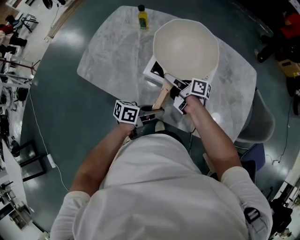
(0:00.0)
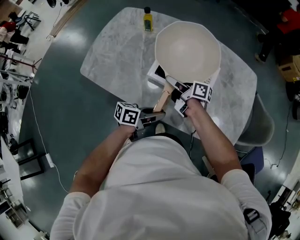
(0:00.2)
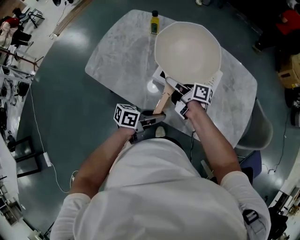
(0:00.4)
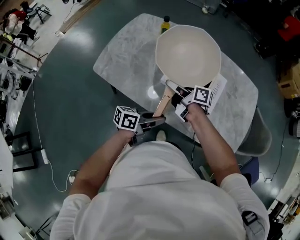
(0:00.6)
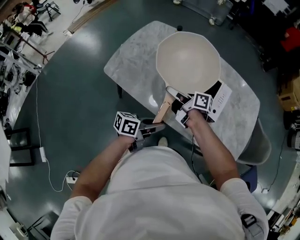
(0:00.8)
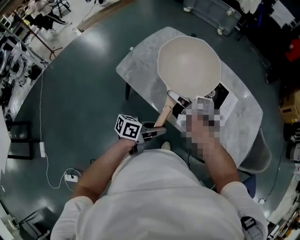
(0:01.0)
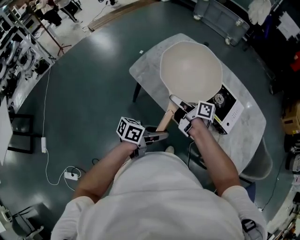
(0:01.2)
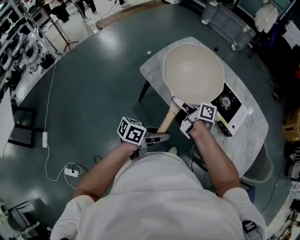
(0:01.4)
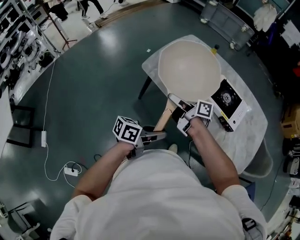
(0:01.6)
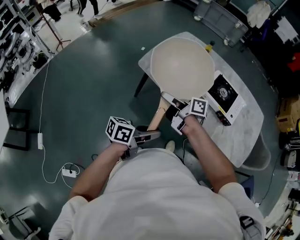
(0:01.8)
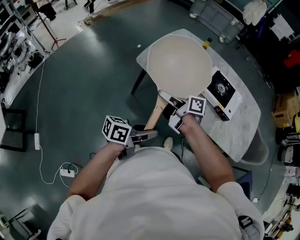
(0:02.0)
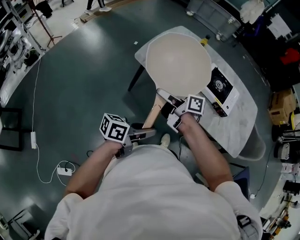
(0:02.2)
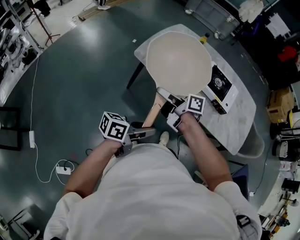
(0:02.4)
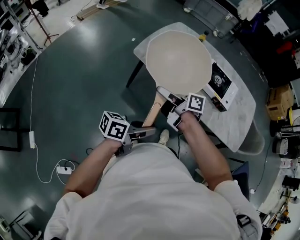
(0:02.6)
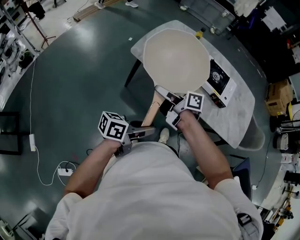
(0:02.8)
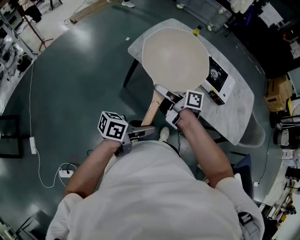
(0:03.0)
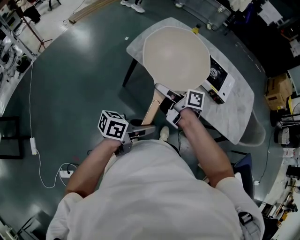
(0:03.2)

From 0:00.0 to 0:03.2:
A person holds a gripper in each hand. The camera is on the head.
From 0:00.0 to 0:01.6: The left gripper shifts by about 35 cm. Meanwhile the right gripper ends up about 40 cm from where it was.
From 0:01.6 to 0:03.2: The right gripper changes place by roughly 5 cm.

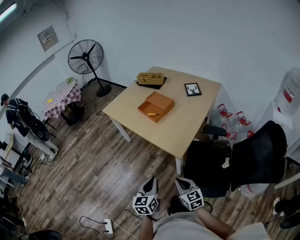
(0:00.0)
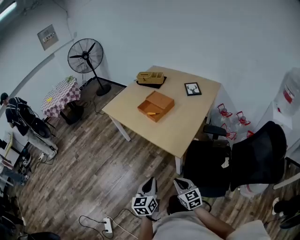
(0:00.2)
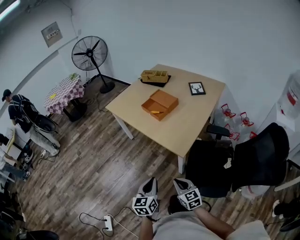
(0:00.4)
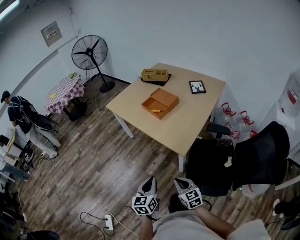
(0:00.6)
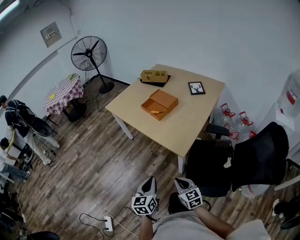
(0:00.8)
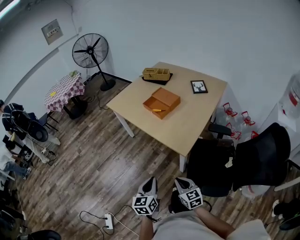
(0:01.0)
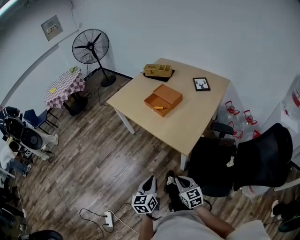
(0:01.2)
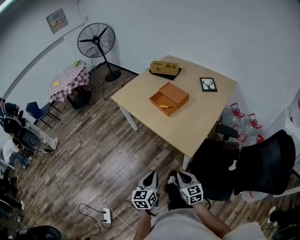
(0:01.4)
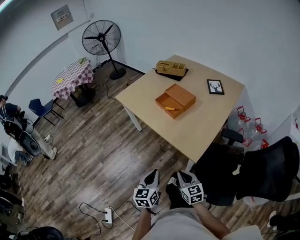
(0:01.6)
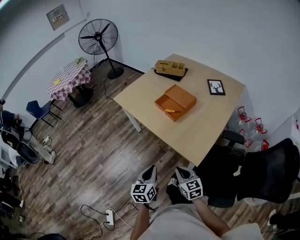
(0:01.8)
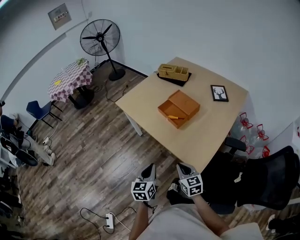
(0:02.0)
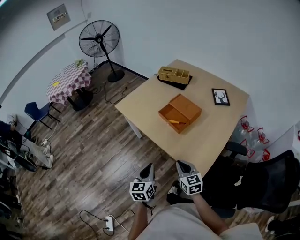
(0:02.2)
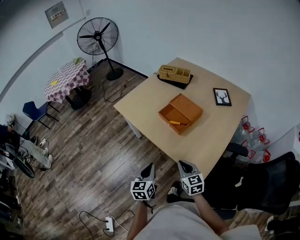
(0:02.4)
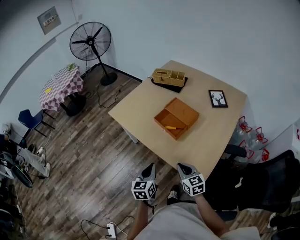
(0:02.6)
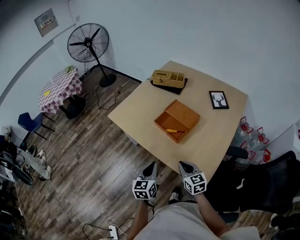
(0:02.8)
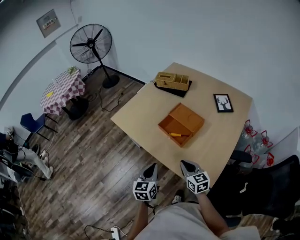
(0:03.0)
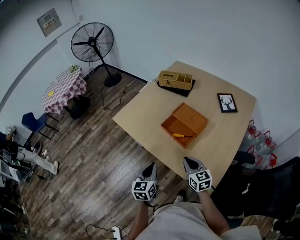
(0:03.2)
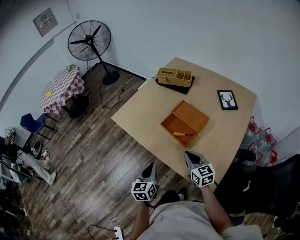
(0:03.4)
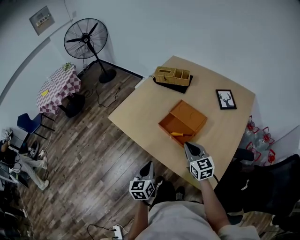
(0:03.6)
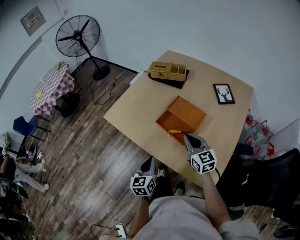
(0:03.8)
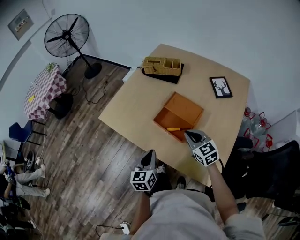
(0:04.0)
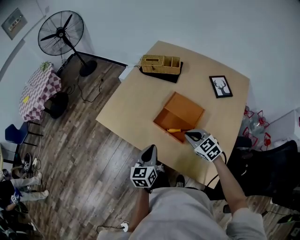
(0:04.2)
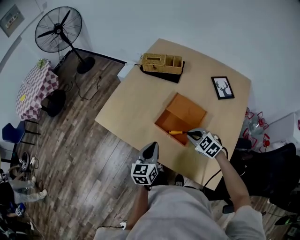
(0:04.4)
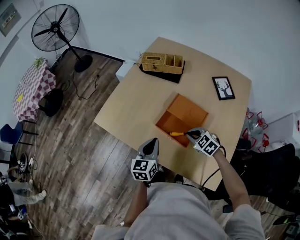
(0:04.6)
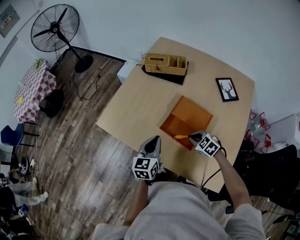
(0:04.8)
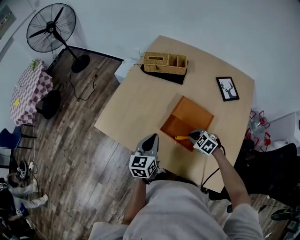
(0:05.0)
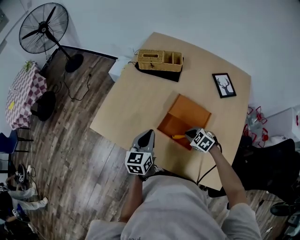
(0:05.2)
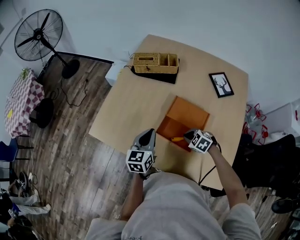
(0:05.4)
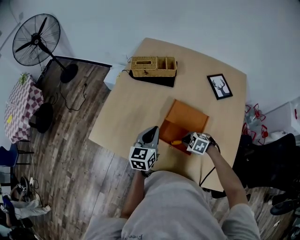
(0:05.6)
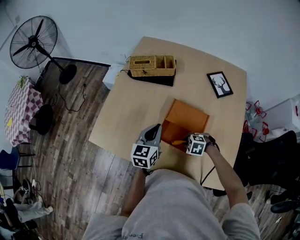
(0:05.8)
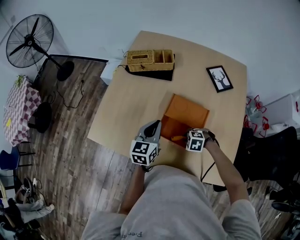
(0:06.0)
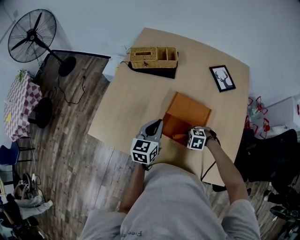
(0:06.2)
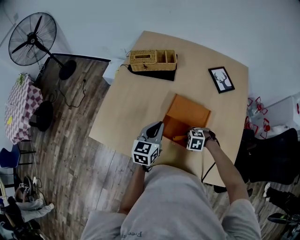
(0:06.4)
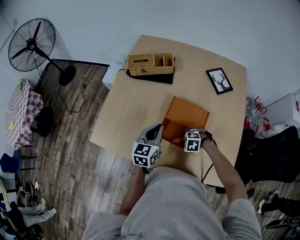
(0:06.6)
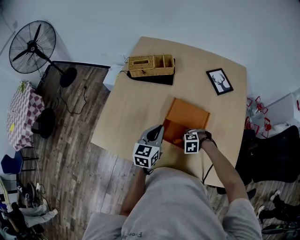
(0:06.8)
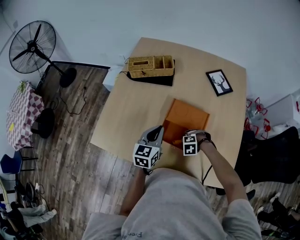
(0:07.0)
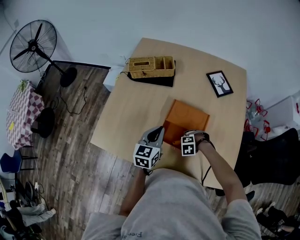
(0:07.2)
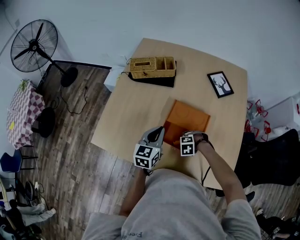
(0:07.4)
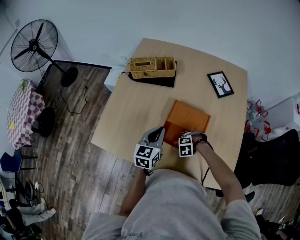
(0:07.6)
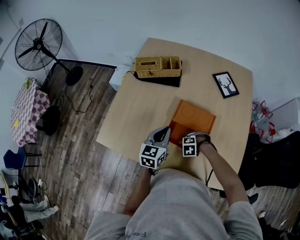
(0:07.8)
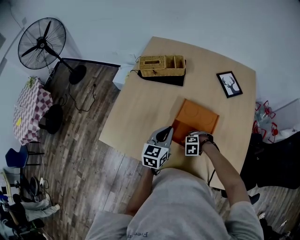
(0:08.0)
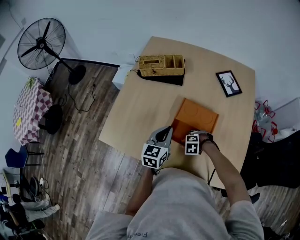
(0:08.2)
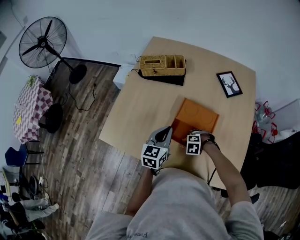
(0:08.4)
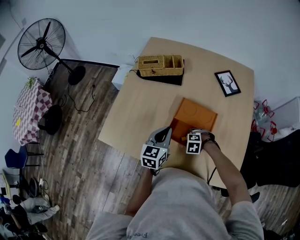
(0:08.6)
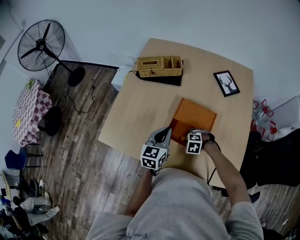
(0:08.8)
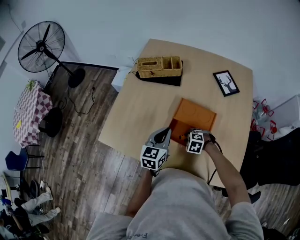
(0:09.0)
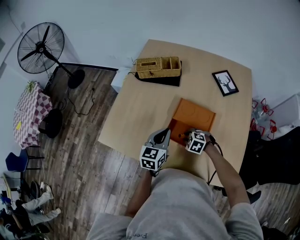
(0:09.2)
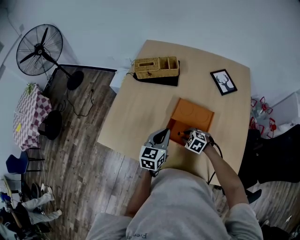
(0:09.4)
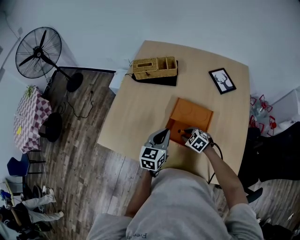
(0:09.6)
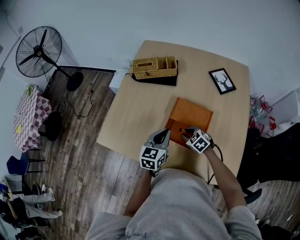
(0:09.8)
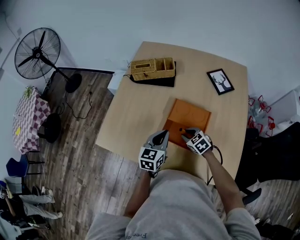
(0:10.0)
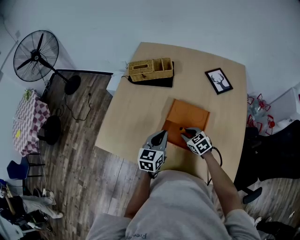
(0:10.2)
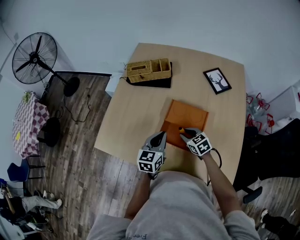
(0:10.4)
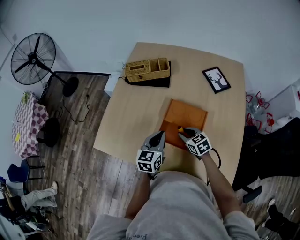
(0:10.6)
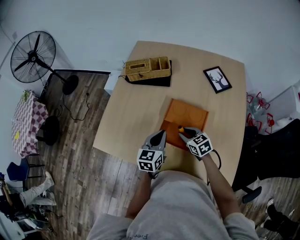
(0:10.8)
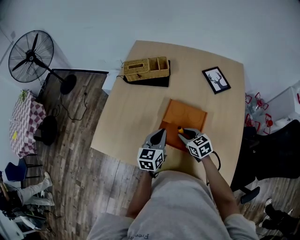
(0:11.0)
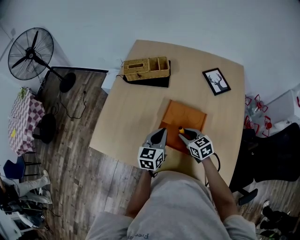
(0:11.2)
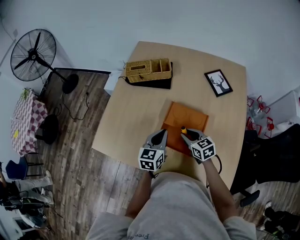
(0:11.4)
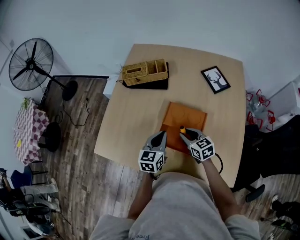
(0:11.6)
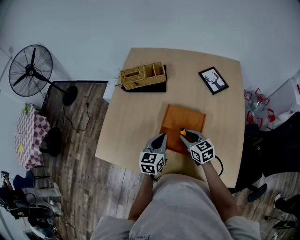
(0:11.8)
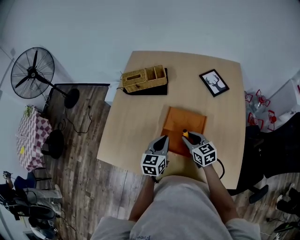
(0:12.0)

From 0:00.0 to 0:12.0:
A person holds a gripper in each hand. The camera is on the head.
From 0:00.0 to 0:01.6: The grippers both shift forward and to the left by approximately 10 cm.
From 0:01.6 to 0:03.0: Both grippers move forward, some 30 cm.
From 0:03.0 to 0:04.4: The grippers both shift forward by about 20 cm. The right gripper turns by roughly 40 degrees.
From 0:04.4 to 0:06.0: The left gripper changes place by some 20 cm, while the right gripper travels downward by some 15 cm, and turns by roughly 30 degrees.
From 0:06.0 to 0:07.6: The grippers make only small movements.
From 0:07.6 to 0:09.0: The right gripper swivels roughly 20 degrees.
From 0:09.0 to 0:10.4: The right gripper is displaced upward by approximately 5 cm, and angles its fingers upward, by approximately 30 degrees.
From 0:10.4 to 0:12.0: The right gripper is displaced upward by some 5 cm, and swivels some 20 degrees.

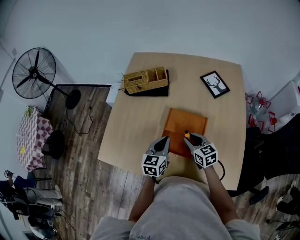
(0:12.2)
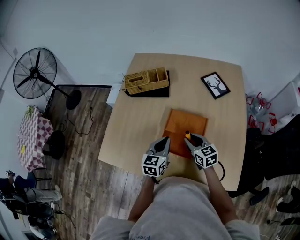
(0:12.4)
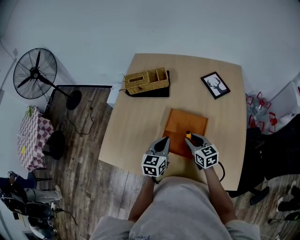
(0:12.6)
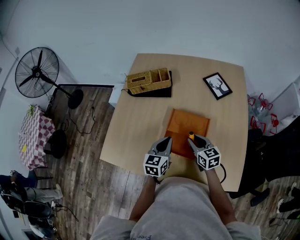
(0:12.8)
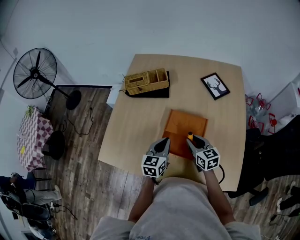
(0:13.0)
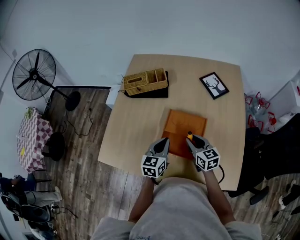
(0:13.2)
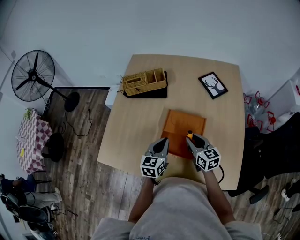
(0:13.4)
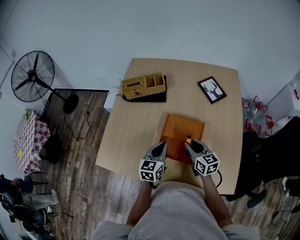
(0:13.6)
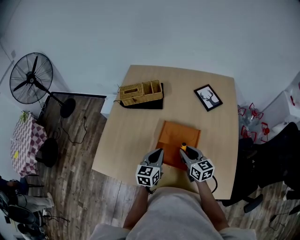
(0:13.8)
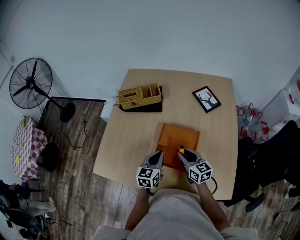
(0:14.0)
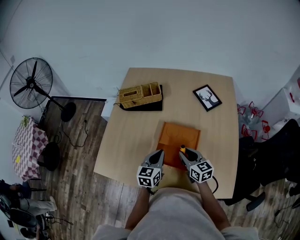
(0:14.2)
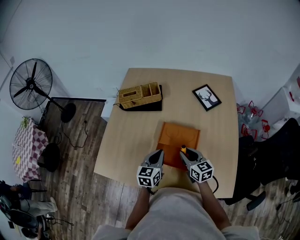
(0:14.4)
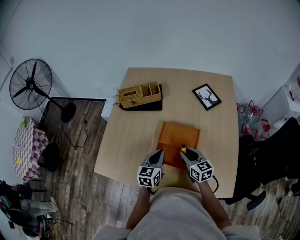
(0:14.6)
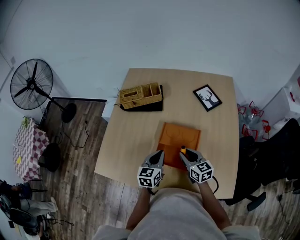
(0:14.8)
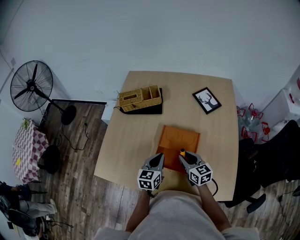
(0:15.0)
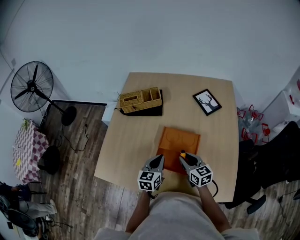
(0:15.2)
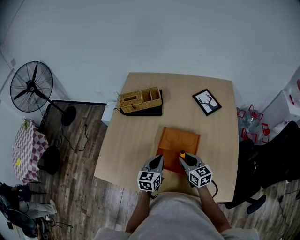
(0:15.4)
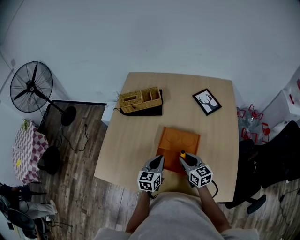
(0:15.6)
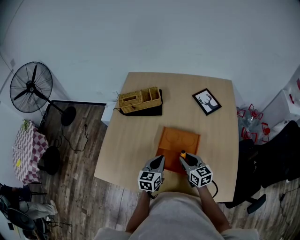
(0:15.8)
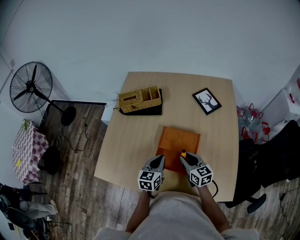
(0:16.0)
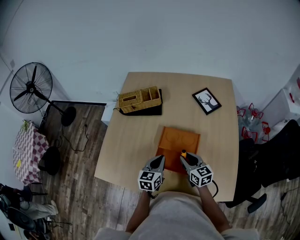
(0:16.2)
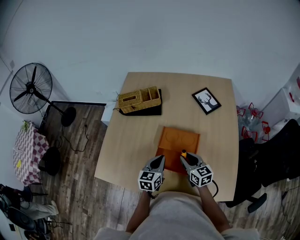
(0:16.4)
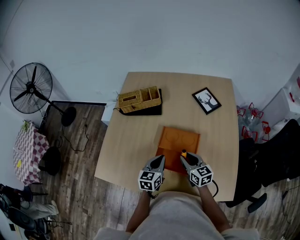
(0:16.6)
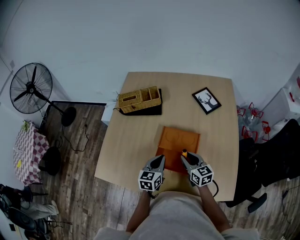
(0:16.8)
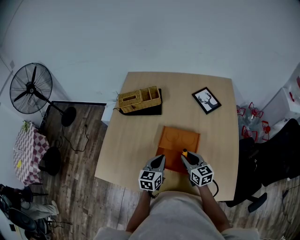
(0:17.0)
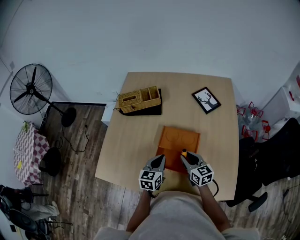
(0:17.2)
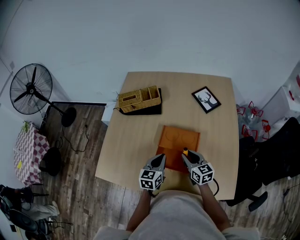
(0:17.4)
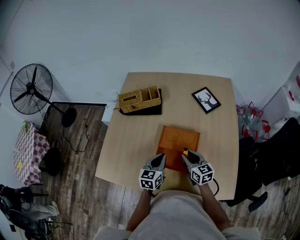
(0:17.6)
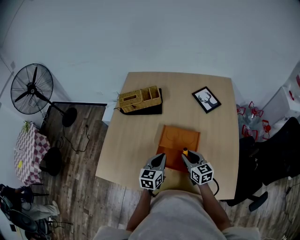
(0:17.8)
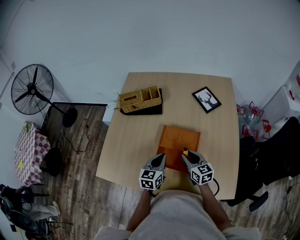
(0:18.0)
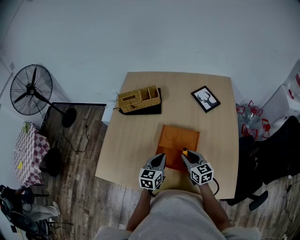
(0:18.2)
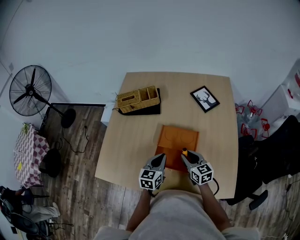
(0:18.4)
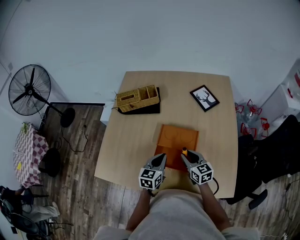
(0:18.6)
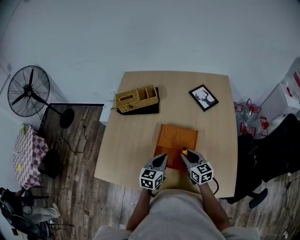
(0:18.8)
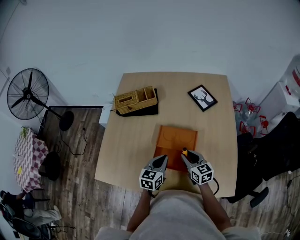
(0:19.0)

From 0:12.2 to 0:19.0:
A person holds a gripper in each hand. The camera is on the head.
From 0:12.2 to 0:15.0: The grippers make only small movements.
From 0:15.0 to 0:16.2: Both grippers stay put.
From 0:16.2 to 0:17.6: Both grippers stay about where they are.
From 0:17.6 to 0:19.0: There are only small adjustments of the grippers.

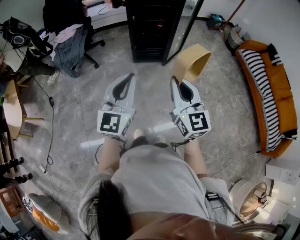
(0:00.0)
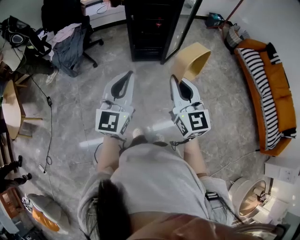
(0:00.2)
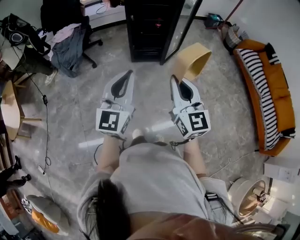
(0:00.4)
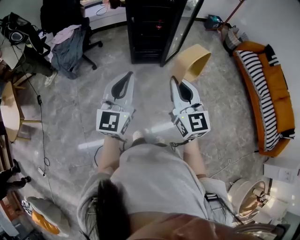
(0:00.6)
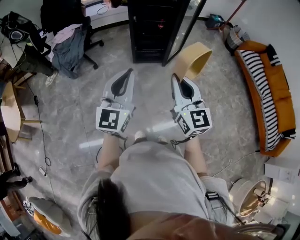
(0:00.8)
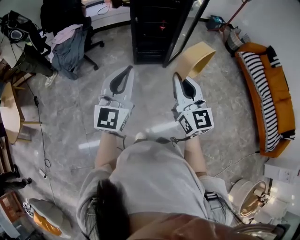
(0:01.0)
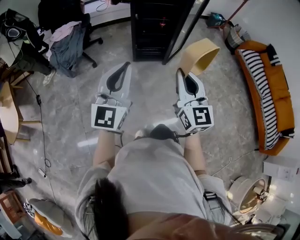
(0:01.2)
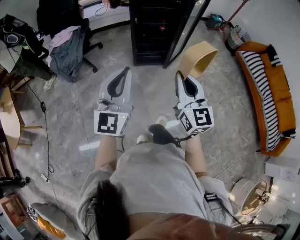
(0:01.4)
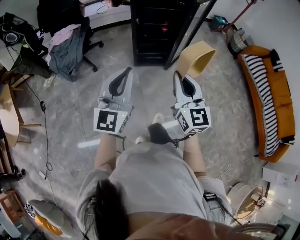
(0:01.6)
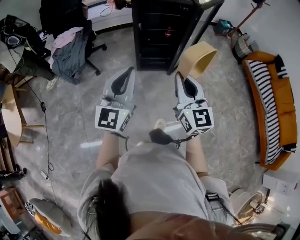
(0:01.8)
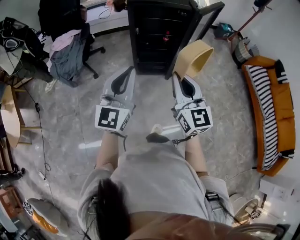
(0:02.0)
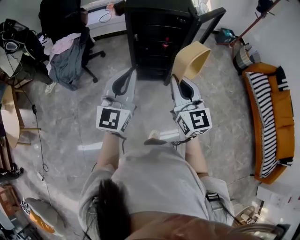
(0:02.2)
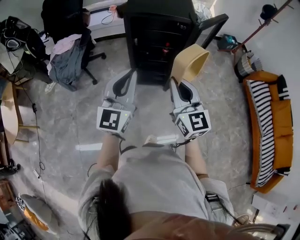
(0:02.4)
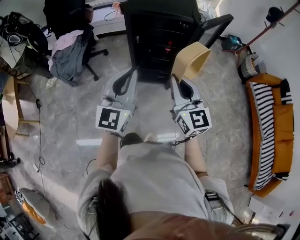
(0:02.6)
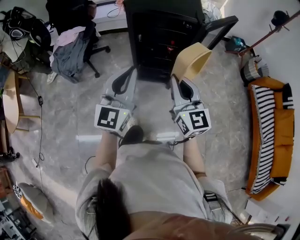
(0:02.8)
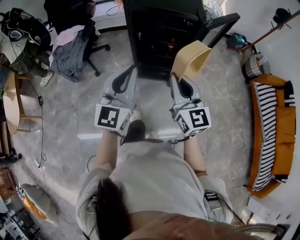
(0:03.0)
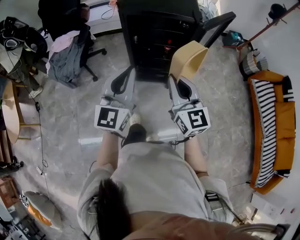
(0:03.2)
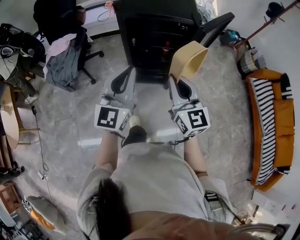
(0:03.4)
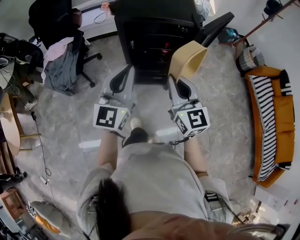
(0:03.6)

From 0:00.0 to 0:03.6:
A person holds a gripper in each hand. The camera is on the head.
From 0:00.0 to 0:01.8: The two grippers go approximately 20 cm forward.
From 0:01.8 to 0:03.6: The two grippers go roughly 25 cm forward.
